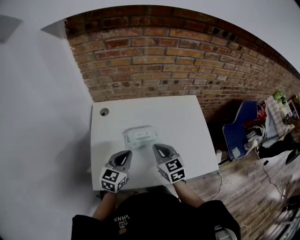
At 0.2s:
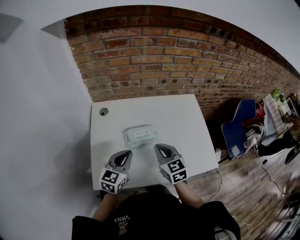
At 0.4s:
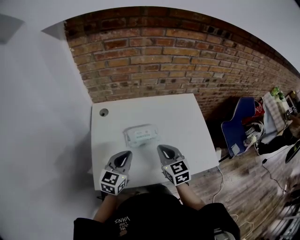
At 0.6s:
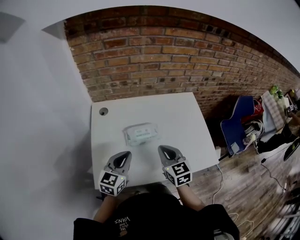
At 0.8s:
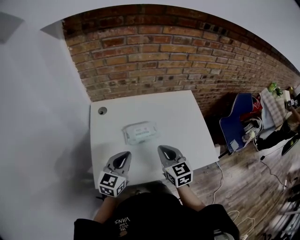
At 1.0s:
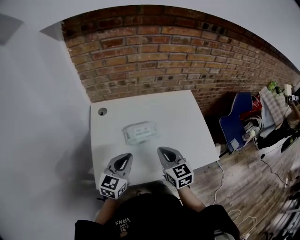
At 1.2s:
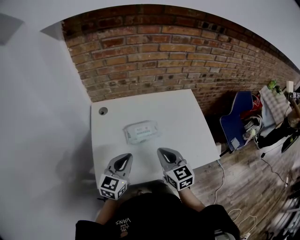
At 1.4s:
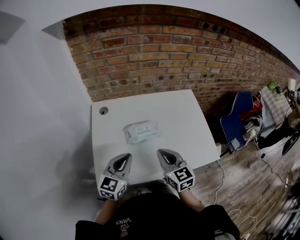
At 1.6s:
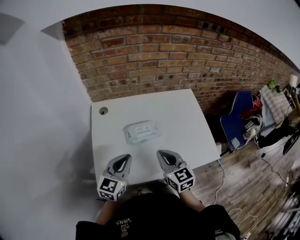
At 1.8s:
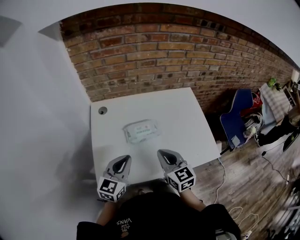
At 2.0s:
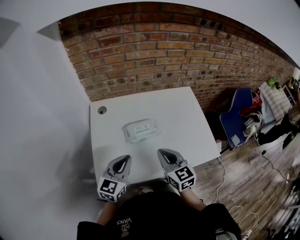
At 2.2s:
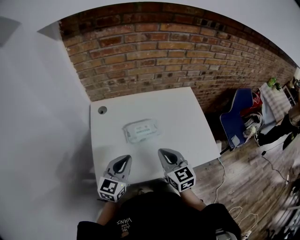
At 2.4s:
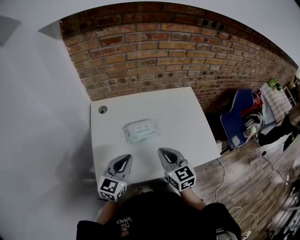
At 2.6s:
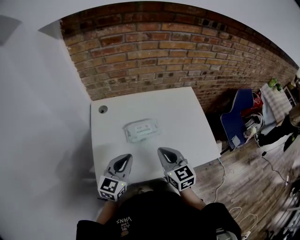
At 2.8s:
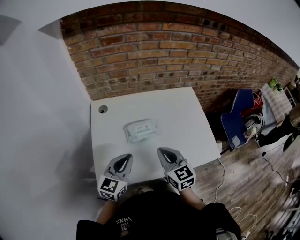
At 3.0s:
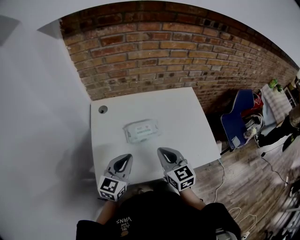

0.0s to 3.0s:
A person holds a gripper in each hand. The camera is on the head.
0.0s to 1.6s: Both grippers move backward, about 5 cm.
1.6s to 3.0s: Both grippers stay about where they are.

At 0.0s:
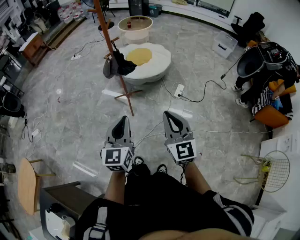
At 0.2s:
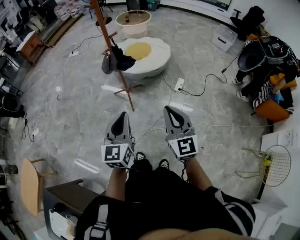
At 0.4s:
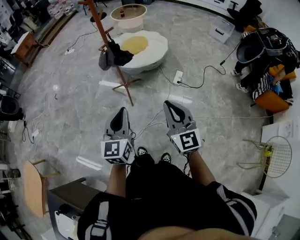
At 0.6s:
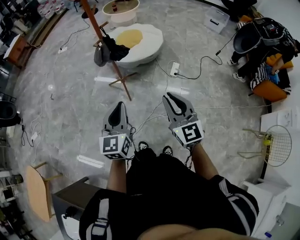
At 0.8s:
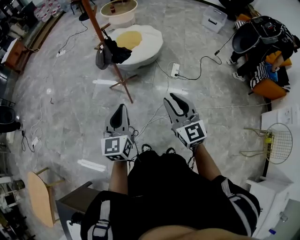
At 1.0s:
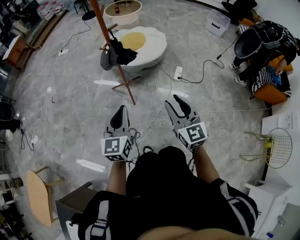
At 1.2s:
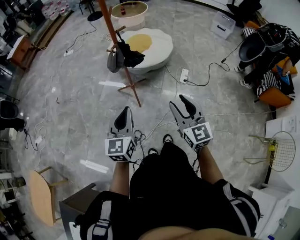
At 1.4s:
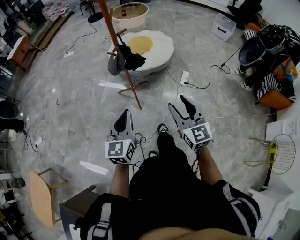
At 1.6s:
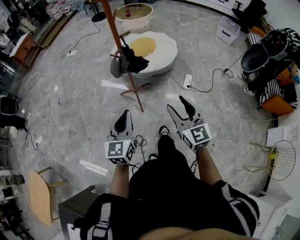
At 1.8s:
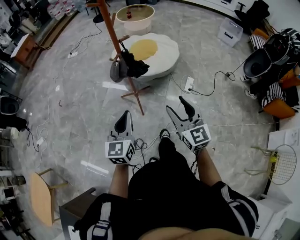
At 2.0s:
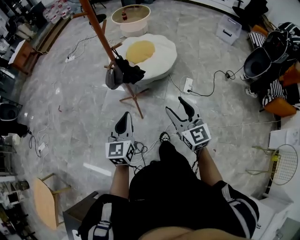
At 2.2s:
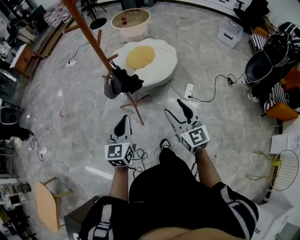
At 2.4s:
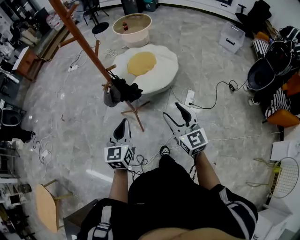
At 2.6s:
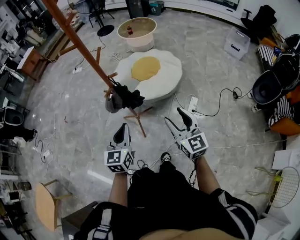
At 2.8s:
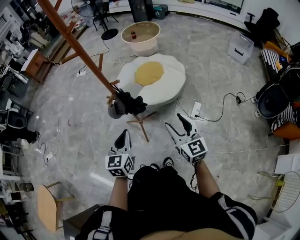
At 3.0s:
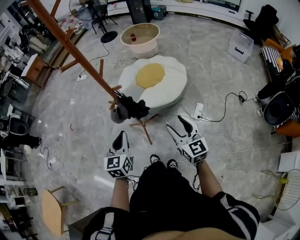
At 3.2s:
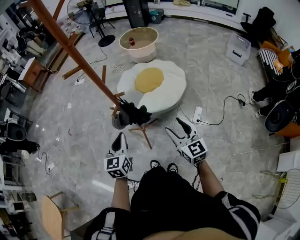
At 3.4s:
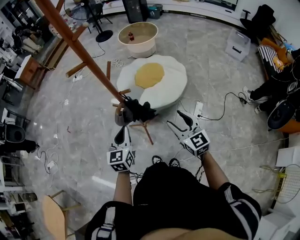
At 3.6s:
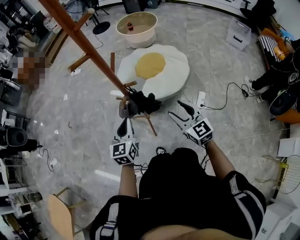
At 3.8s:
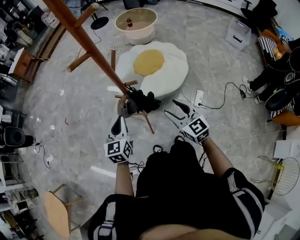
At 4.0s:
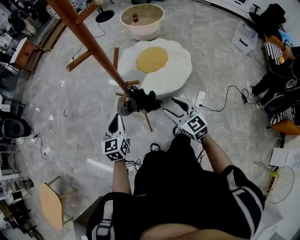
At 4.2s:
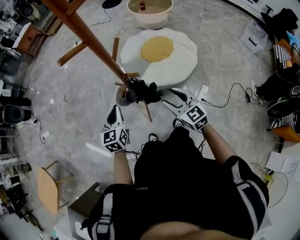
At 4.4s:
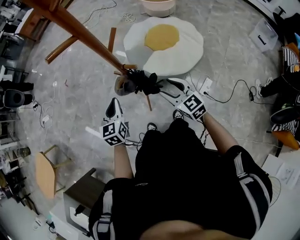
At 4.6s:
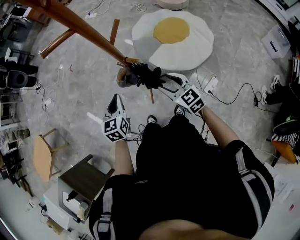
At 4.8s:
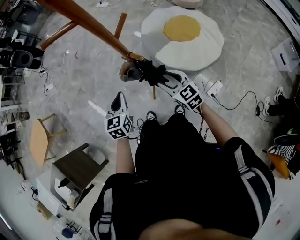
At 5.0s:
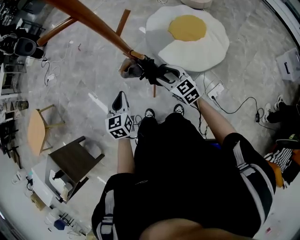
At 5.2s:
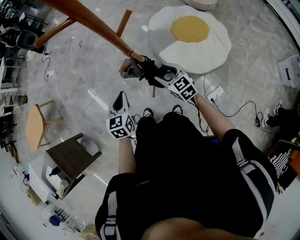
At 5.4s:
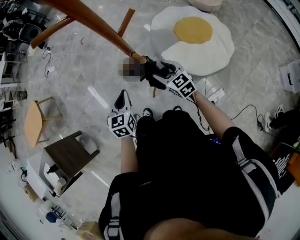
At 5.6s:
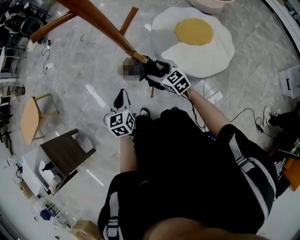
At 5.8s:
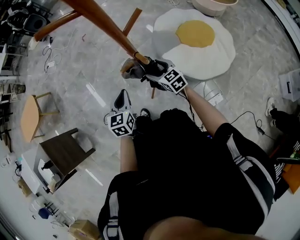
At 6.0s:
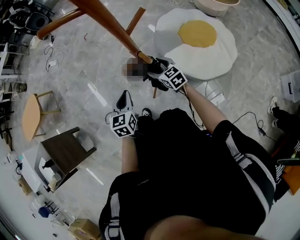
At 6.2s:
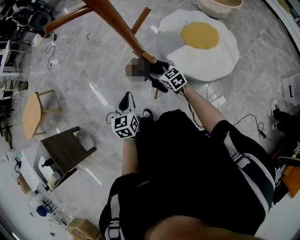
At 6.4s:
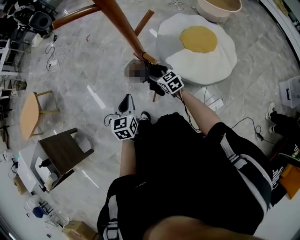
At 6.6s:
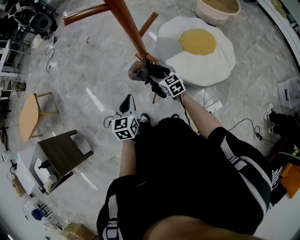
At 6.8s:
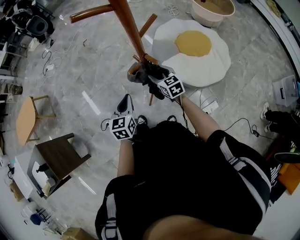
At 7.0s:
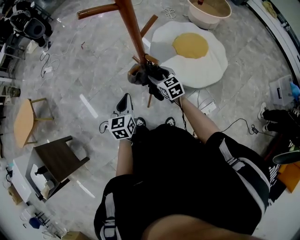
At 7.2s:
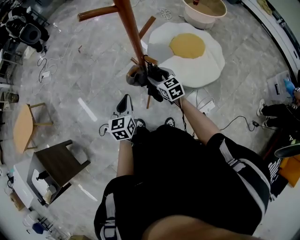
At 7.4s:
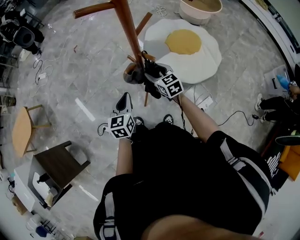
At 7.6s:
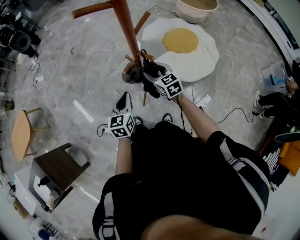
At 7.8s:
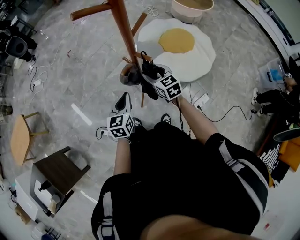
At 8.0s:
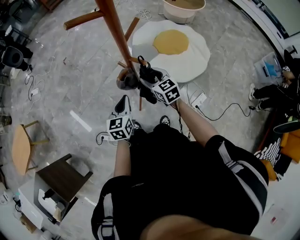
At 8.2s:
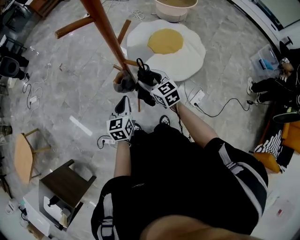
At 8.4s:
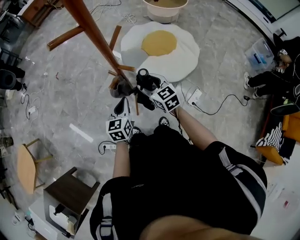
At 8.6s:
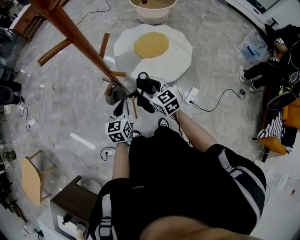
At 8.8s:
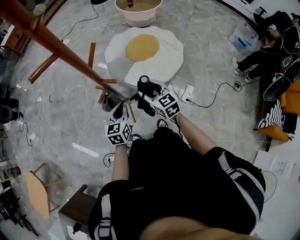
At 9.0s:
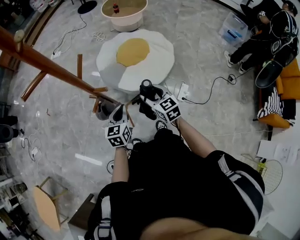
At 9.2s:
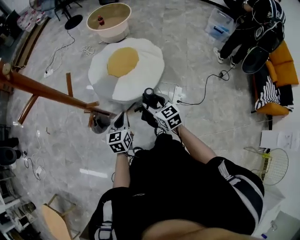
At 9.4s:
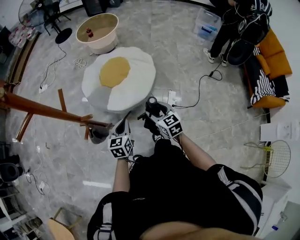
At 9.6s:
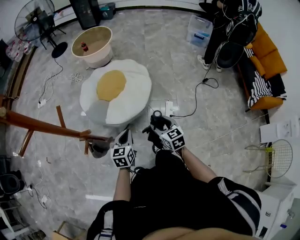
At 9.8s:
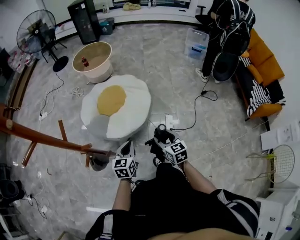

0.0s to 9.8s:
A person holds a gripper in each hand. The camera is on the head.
0.0s to 1.4s: Both grippers move forward and to the left, some 15 cm. The right gripper opens up.
1.4s to 2.8s: The left gripper is displaced forward by about 20 cm; the right gripper travels forward and to the right by approximately 25 cm.
2.8s to 4.2s: Both grippers move forward and to the left, approximately 20 cm. The right gripper rotates about 30 degrees.
4.2s to 5.6s: The left gripper shifts approximately 10 cm downward, and changes its angle by approximately 30 degrees; the right gripper moves roughly 20 cm, and changes its angle by approximately 30 degrees.
7.0s to 8.4s: The right gripper travels upward by approximately 5 cm. The left gripper heads to the right, covering roughly 5 cm.
8.4s to 9.8s: The left gripper ends up roughly 20 cm from where it was, and swivels about 40 degrees, while the right gripper changes place by approximately 30 cm, and turns by some 50 degrees.

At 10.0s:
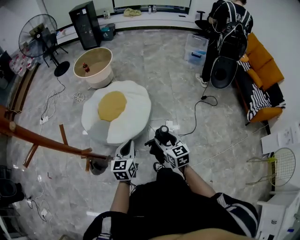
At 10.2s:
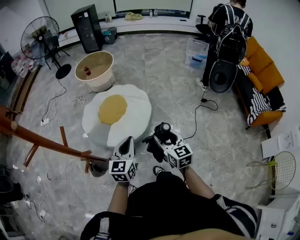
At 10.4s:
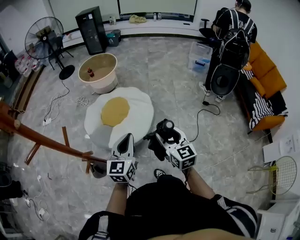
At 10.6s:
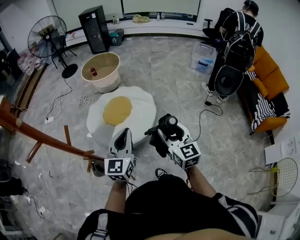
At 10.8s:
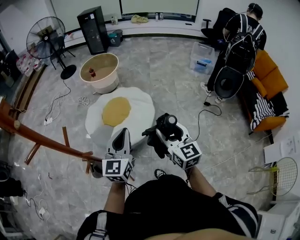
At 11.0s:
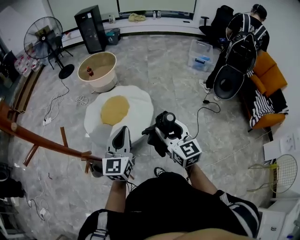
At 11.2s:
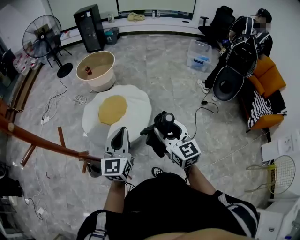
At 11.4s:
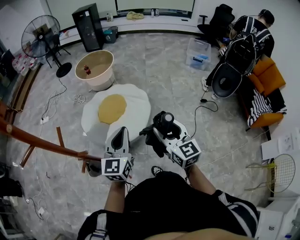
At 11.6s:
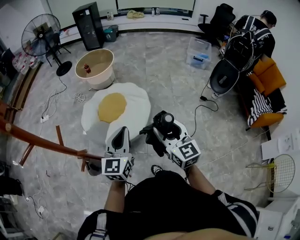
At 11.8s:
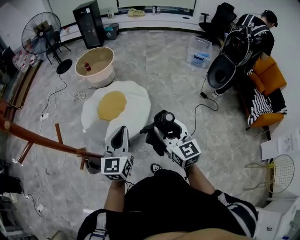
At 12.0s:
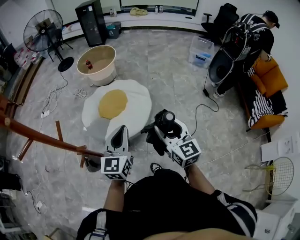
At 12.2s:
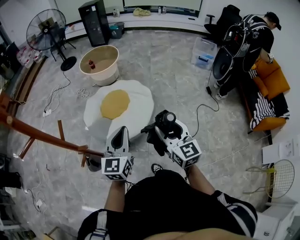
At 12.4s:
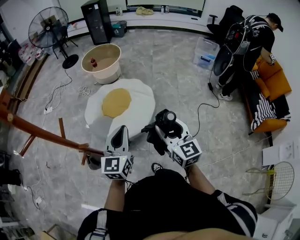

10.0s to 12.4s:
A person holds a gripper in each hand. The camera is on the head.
10.0s to 11.2s: The two grippers go approximately 15 cm upward. The left gripper turns by about 20 degrees.
11.2s to 12.4s: The grippers move only a little.

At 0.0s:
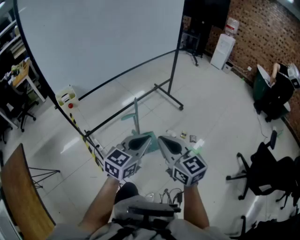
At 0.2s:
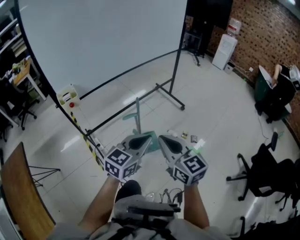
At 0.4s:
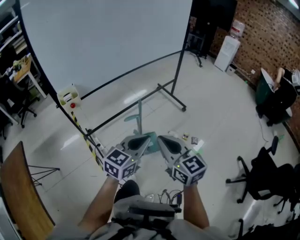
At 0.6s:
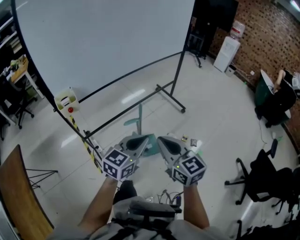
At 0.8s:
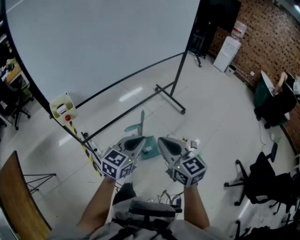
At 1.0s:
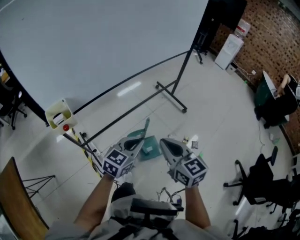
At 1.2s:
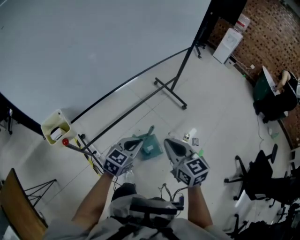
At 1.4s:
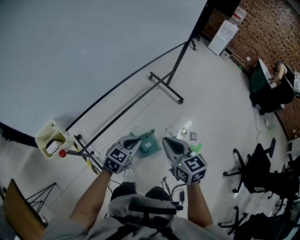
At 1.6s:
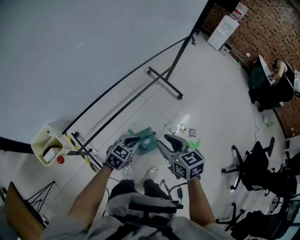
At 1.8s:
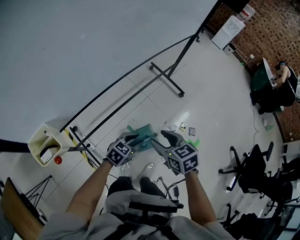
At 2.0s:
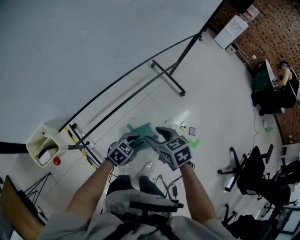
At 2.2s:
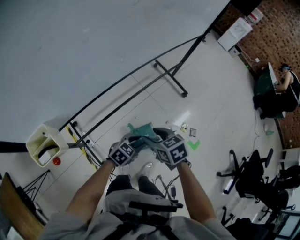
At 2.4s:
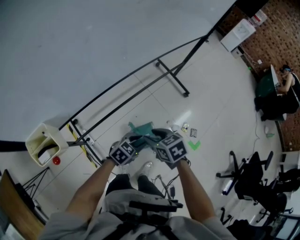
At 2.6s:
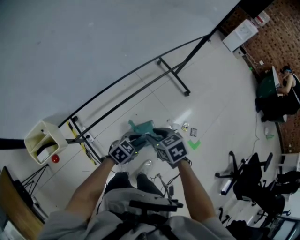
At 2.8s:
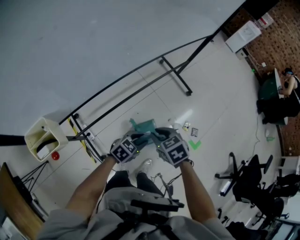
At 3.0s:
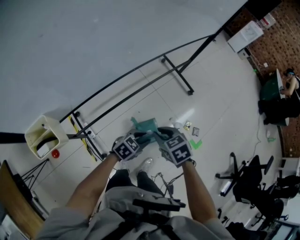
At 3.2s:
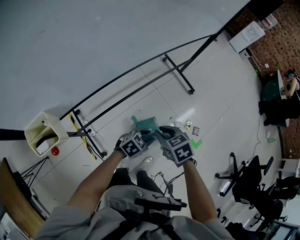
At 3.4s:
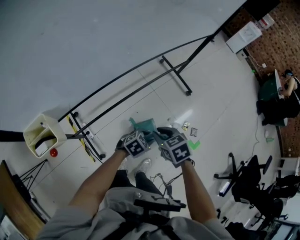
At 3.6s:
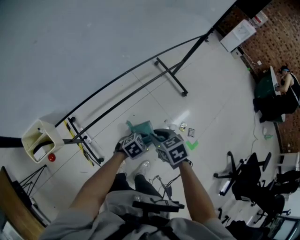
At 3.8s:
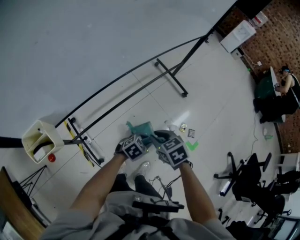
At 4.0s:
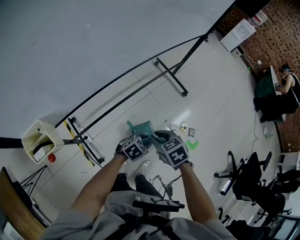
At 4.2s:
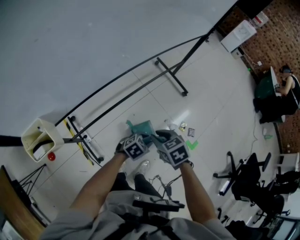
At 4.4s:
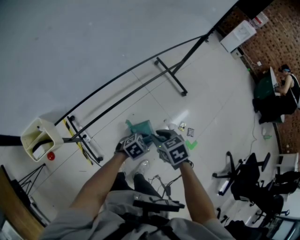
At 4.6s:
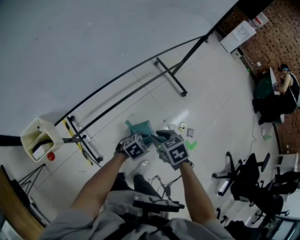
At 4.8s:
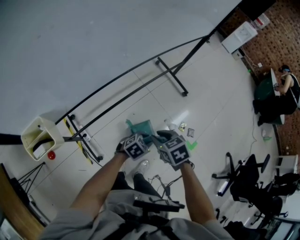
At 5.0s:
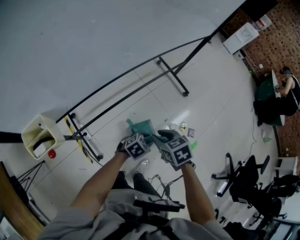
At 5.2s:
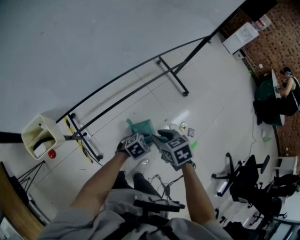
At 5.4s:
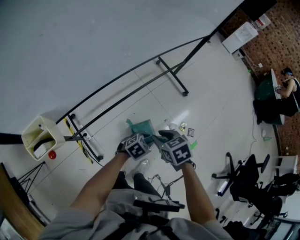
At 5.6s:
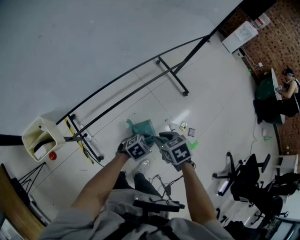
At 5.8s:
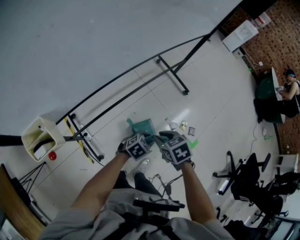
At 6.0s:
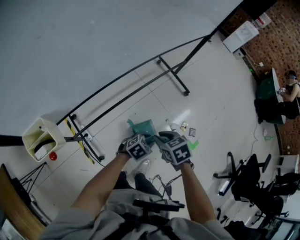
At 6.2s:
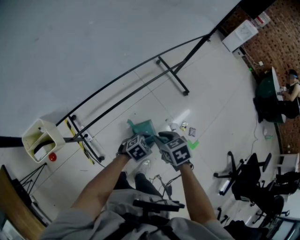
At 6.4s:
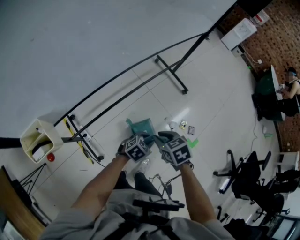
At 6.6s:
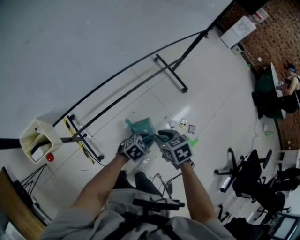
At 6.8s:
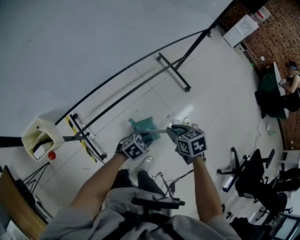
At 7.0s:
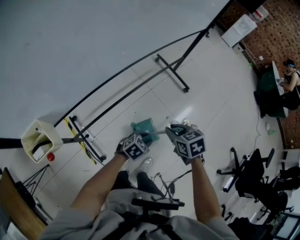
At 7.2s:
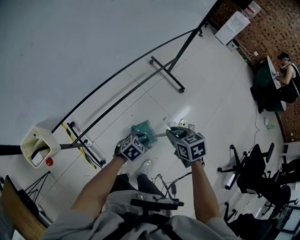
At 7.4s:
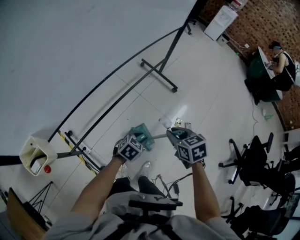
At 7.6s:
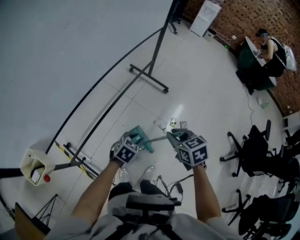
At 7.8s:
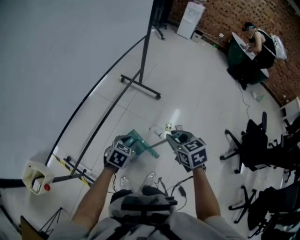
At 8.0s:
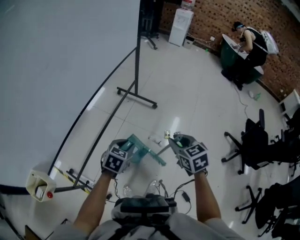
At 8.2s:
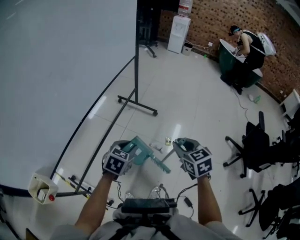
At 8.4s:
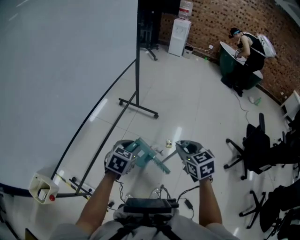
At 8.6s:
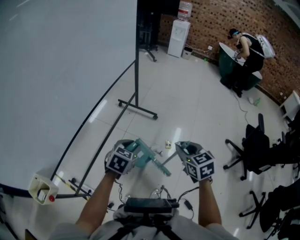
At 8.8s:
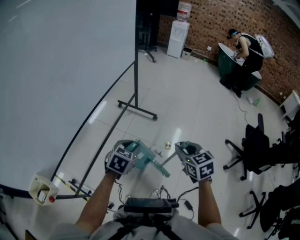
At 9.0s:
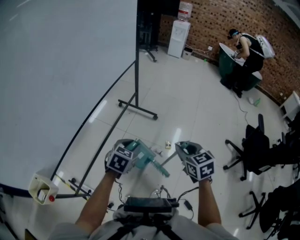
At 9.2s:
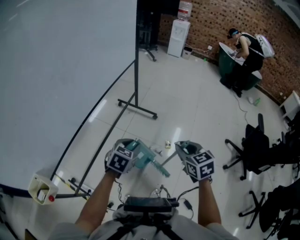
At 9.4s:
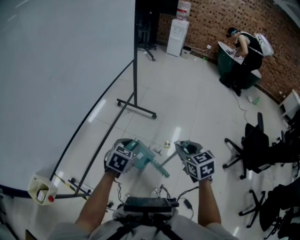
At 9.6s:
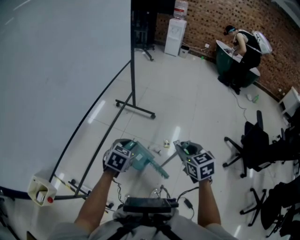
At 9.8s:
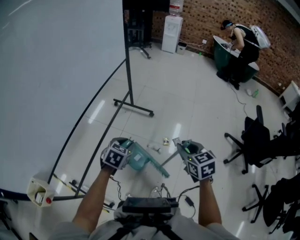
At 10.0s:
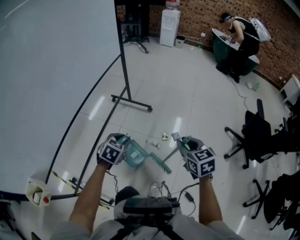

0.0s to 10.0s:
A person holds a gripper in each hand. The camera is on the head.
0.0s to 1.4s: The left gripper moves forward, downward and to the left, some 30 cm; the right gripper heads forward and downward, covering some 20 cm.
1.4s to 2.8s: The left gripper moves downward, about 10 cm, and opens; the right gripper travels downward and forward by some 15 cm, tilts its fingers roughly 30 degrees downward, and opens, then closes once more.
2.8s to 4.2s: The left gripper ends up some 5 cm from where it was.
4.2s to 5.8s: The grippers stay close to where they were, moving slightly.
5.8s to 7.2s: The right gripper heads to the right, covering about 5 cm.
7.2s to 8.6s: The left gripper goes approximately 20 cm upward. The right gripper shifts some 20 cm to the right and upward, and rotates some 30 degrees.
8.6s to 10.0s: The left gripper moves downward, some 5 cm. The right gripper moves to the right, roughly 5 cm.
